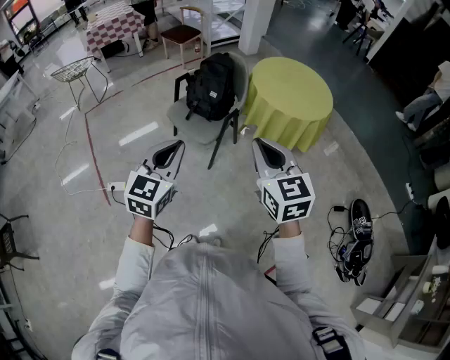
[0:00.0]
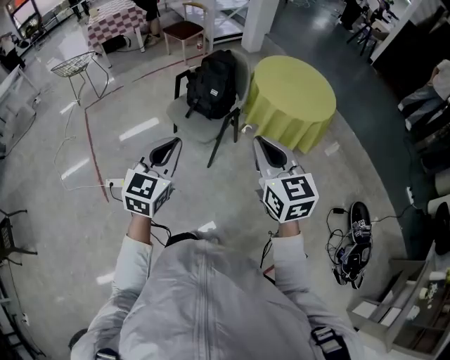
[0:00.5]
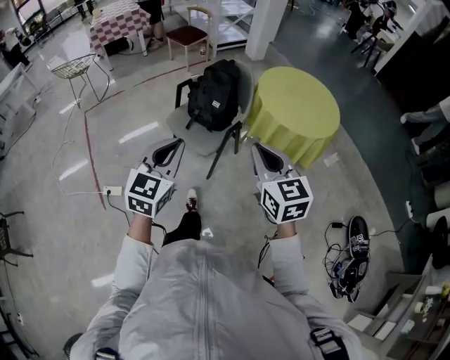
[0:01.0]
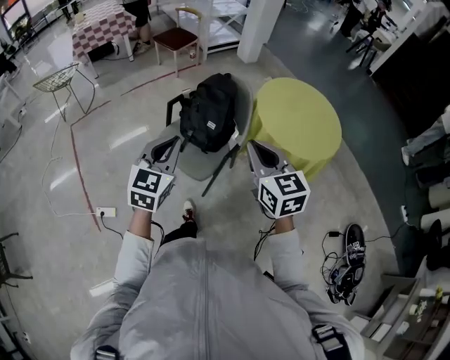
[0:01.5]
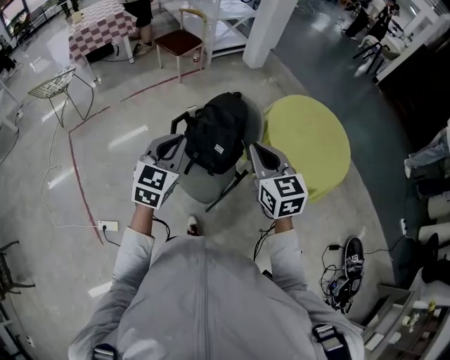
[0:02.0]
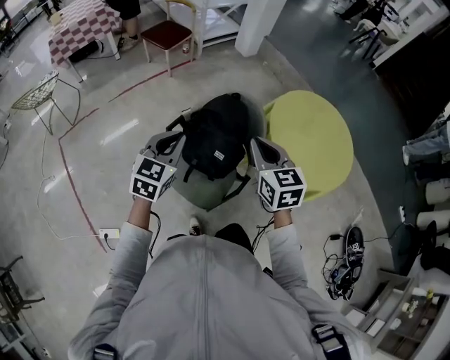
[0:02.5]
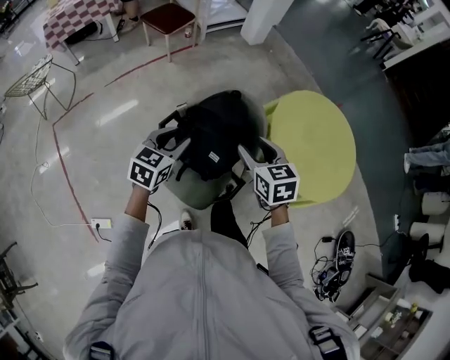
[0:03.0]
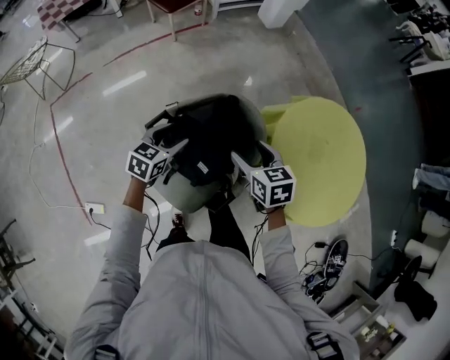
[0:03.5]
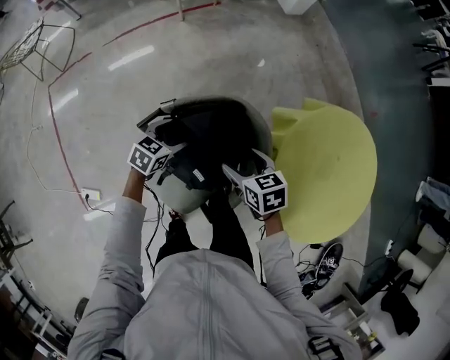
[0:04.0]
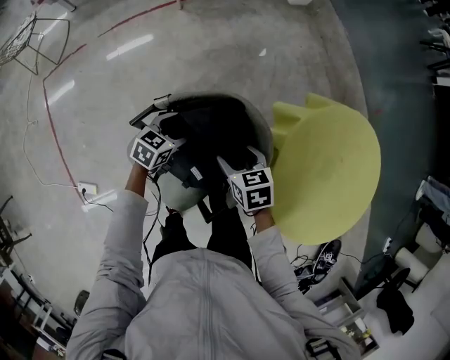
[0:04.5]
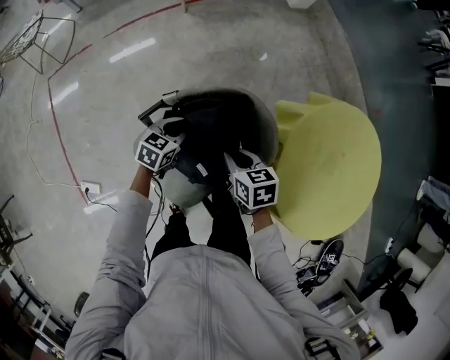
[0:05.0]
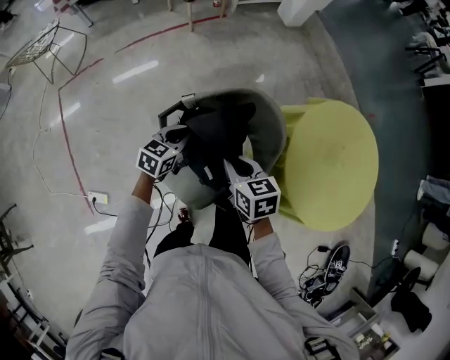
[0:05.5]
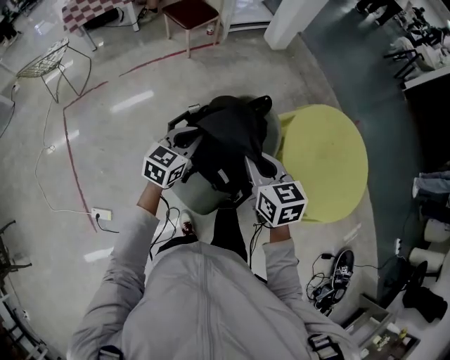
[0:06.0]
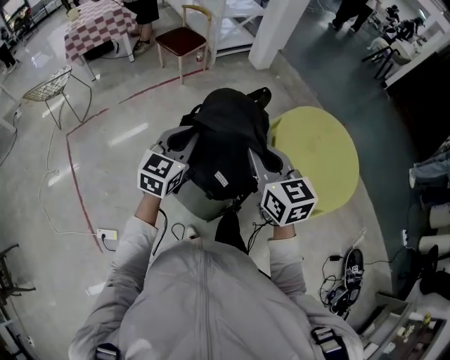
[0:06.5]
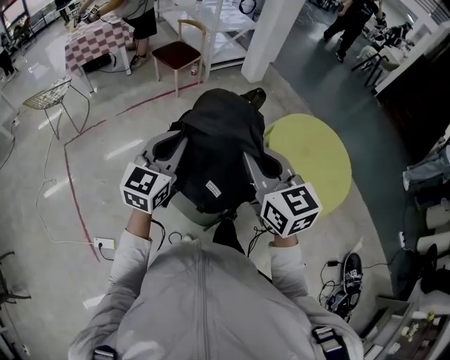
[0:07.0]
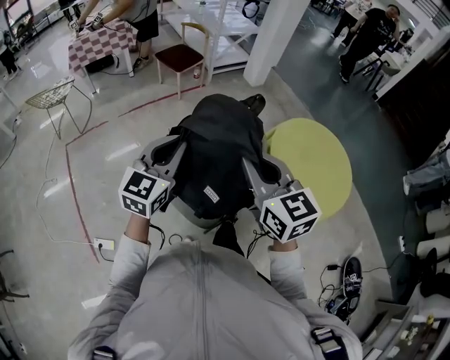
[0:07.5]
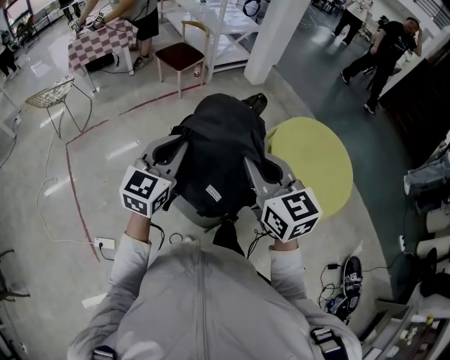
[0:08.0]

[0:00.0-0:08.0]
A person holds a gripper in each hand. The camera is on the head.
0.0 to 2.0 s: Both grippers are carried forward, roughly 40 cm.
2.0 to 4.0 s: Both grippers travel together downward and forward, some 40 cm. The left gripper swivels approximately 40 degrees, and opens up. Meanwhile the right gripper points its fingers approximately 30 degrees further downward, and opens.
4.0 to 6.0 s: The two grippers go roughly 20 cm upward and backward. The right gripper rotates roughly 30 degrees, and closes its fingers. The left gripper turns by roughly 30 degrees, and closes its fingers.
6.0 to 8.0 s: The two grippers go some 20 cm upward and backward. The right gripper changes its angle by about 20 degrees. Meanwhile the left gripper swivels roughly 20 degrees.

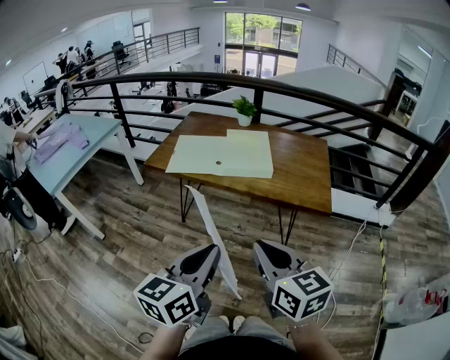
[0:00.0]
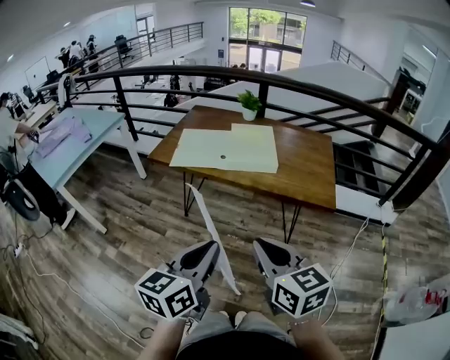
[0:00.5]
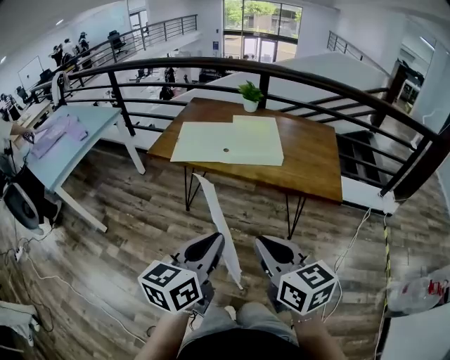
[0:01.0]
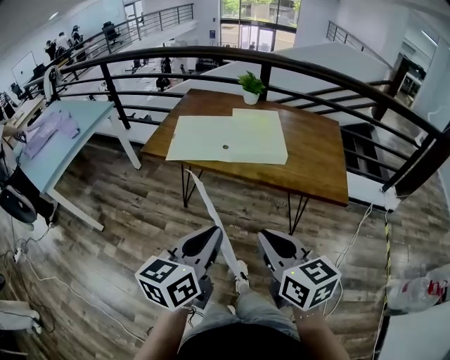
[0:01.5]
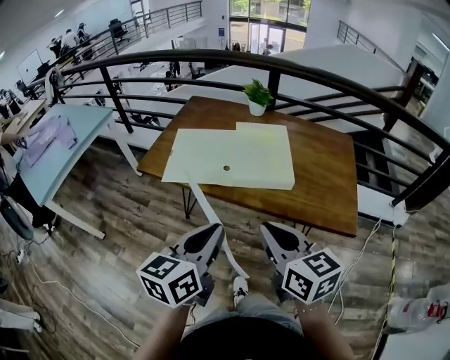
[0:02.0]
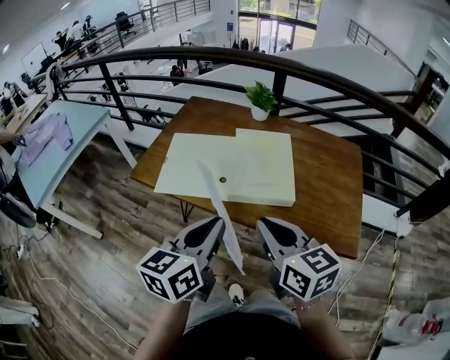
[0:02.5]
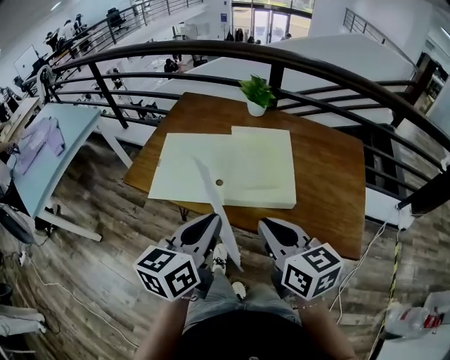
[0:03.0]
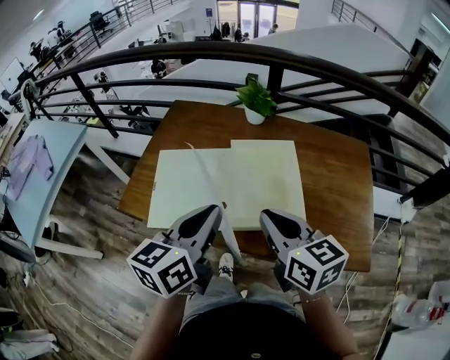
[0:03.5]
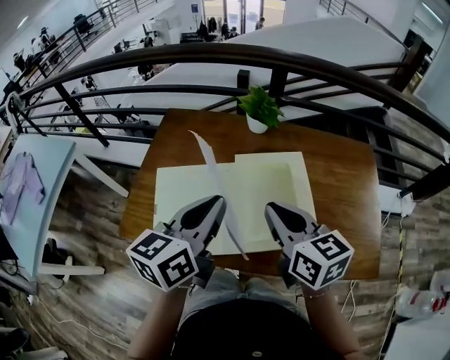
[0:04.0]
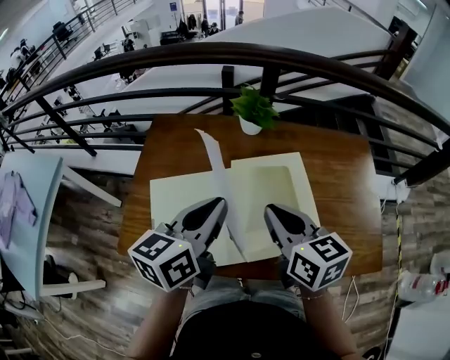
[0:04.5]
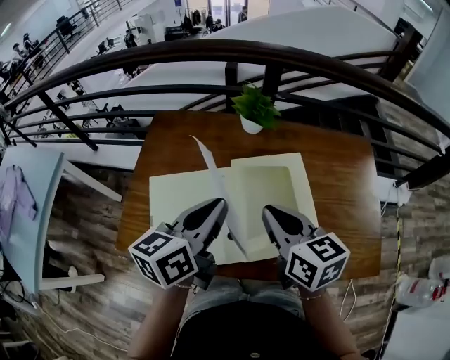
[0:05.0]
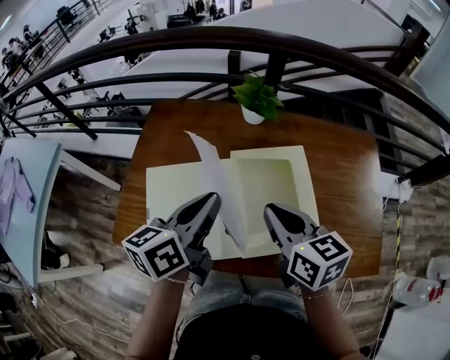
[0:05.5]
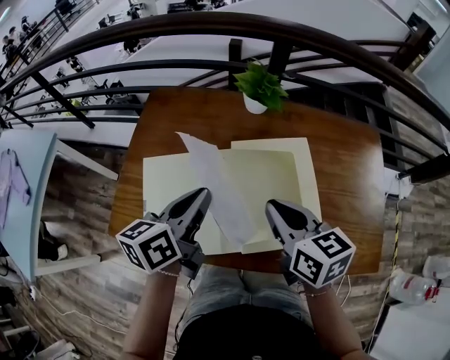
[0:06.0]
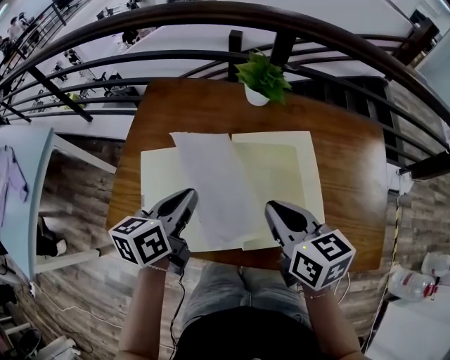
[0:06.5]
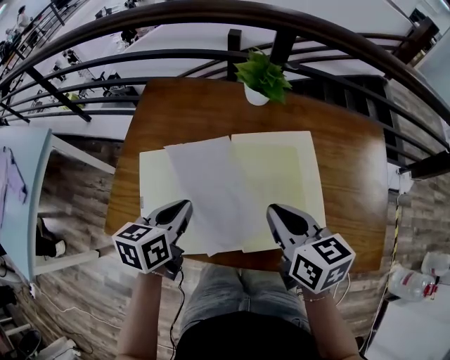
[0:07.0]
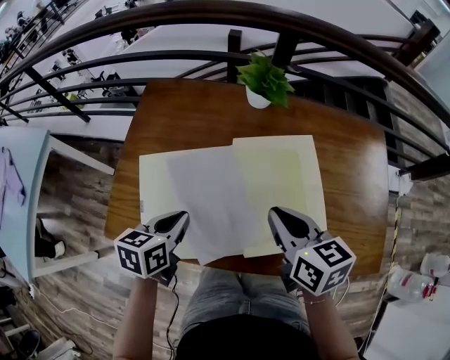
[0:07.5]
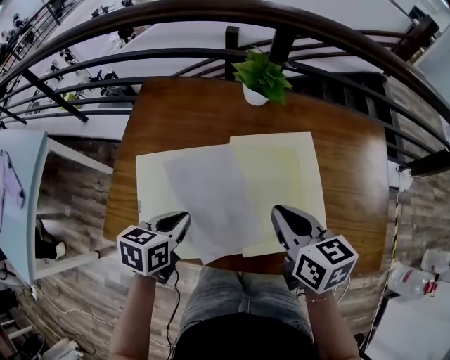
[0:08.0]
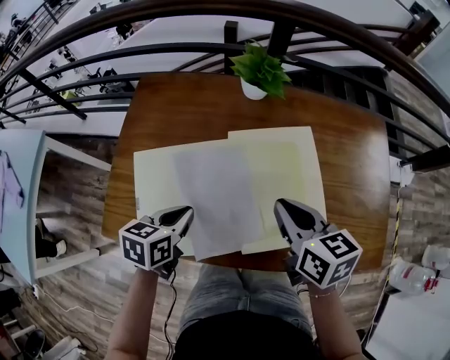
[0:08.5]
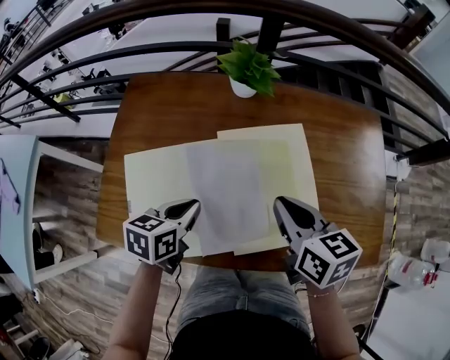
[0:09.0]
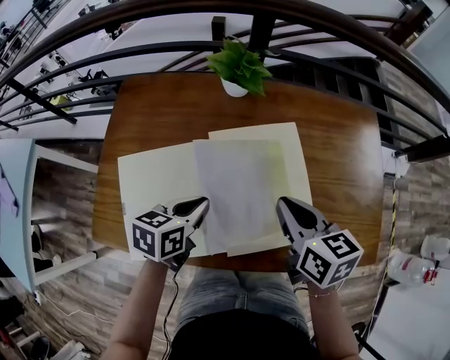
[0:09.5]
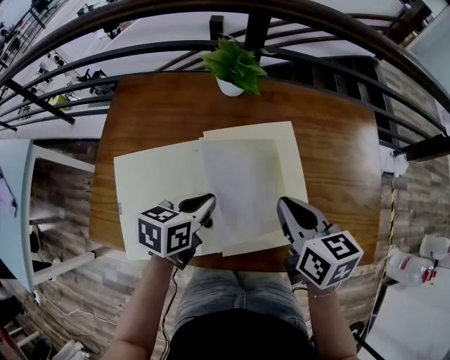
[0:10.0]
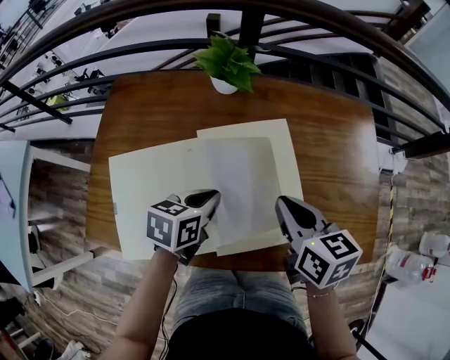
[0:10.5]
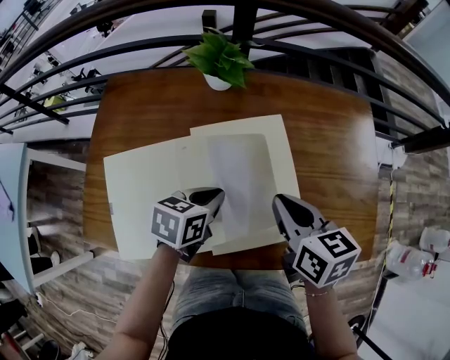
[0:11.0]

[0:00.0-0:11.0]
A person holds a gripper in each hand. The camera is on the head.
0.0 to 2.0 s: The grippers both shift forward by approximately 20 cm.
2.0 to 3.5 s: Both grippers move forward, some 25 cm.
3.5 to 5.5 s: The grippers both shift forward by some 15 cm.
5.5 to 7.5 s: The left gripper is displaced downward and to the left by some 15 cm, and swivels roughly 30 degrees.
7.5 to 9.0 s: The left gripper moves to the right, roughly 5 cm.
9.0 to 11.0 s: The left gripper travels to the right by about 10 cm. Meanwhile the right gripper moves to the right, approximately 5 cm.

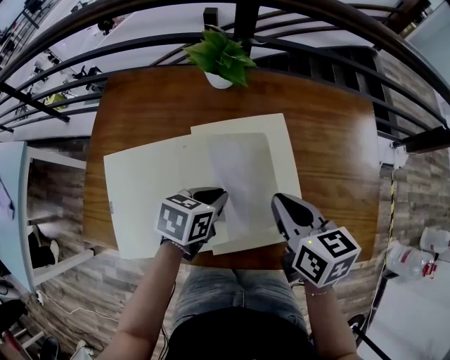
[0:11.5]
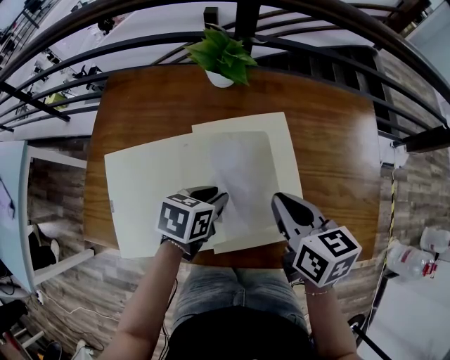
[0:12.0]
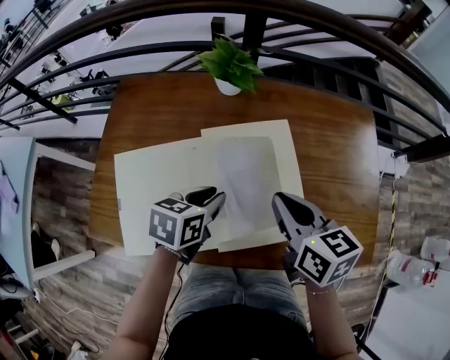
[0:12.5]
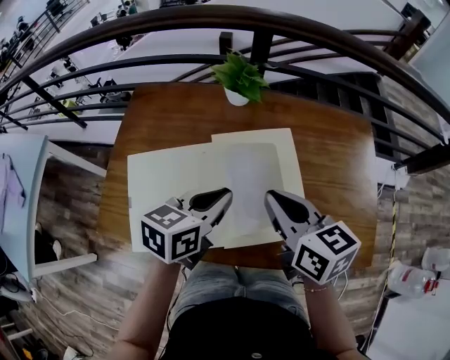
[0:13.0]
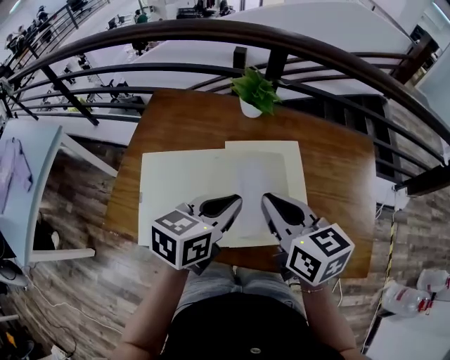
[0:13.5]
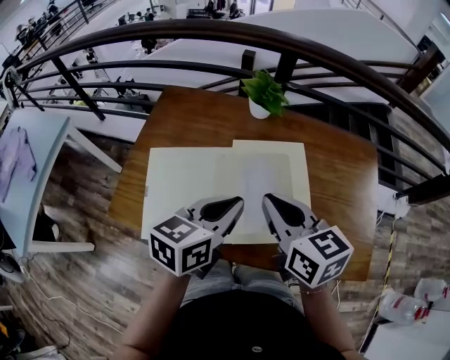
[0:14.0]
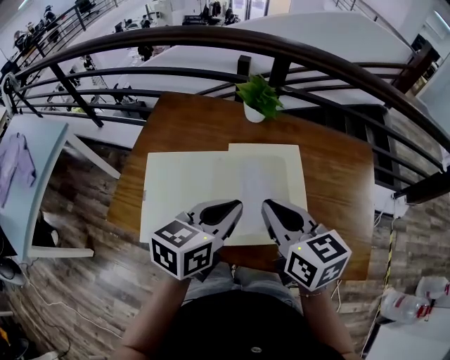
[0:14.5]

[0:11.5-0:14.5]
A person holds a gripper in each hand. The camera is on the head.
11.5 to 13.0 s: The right gripper travels upward by about 5 cm. Meanwhile the left gripper heads upward, covering roughly 10 cm, and swivels about 20 degrees.
13.0 to 14.5 s: The left gripper travels upward by roughly 5 cm; the right gripper changes place by some 5 cm.

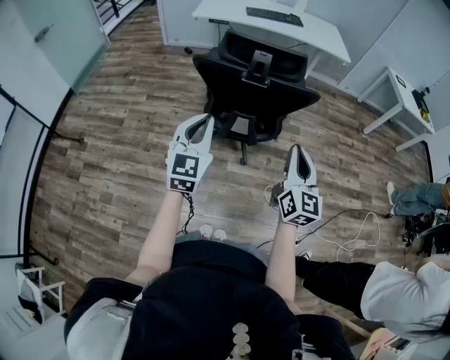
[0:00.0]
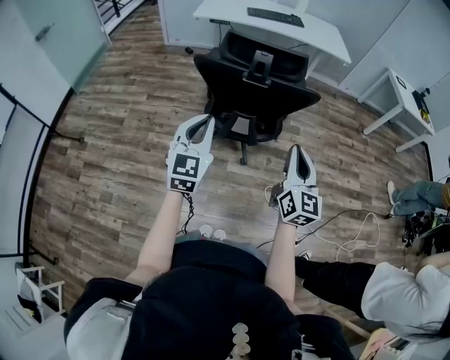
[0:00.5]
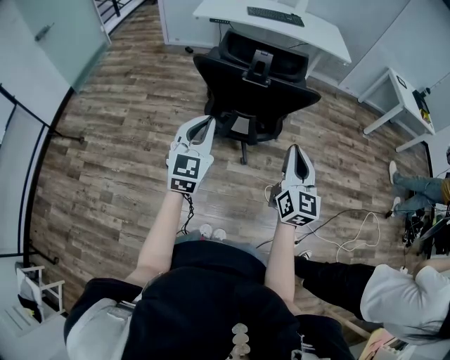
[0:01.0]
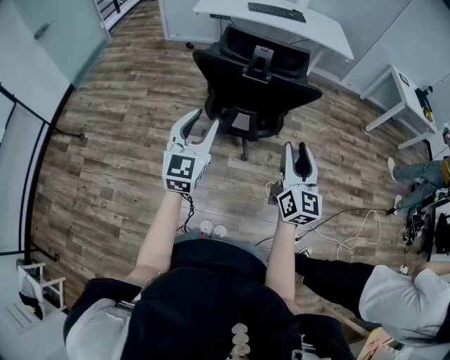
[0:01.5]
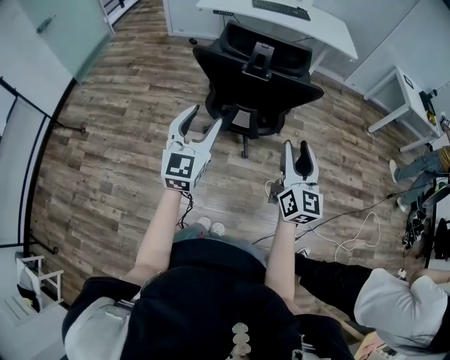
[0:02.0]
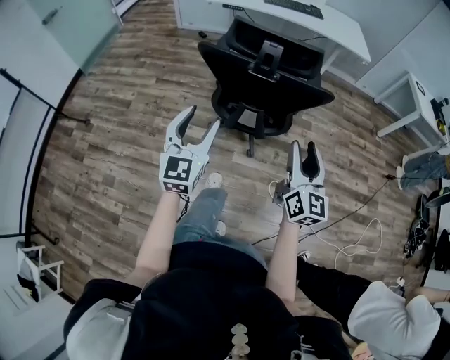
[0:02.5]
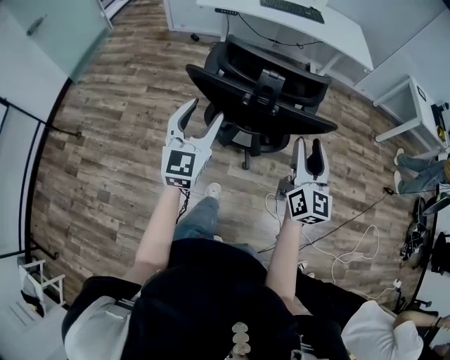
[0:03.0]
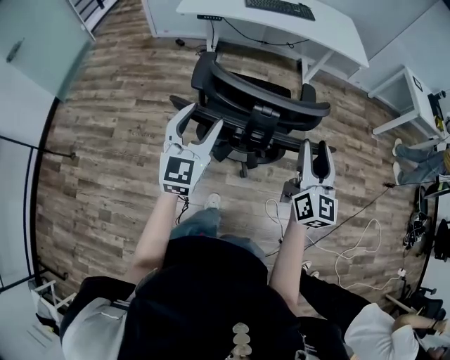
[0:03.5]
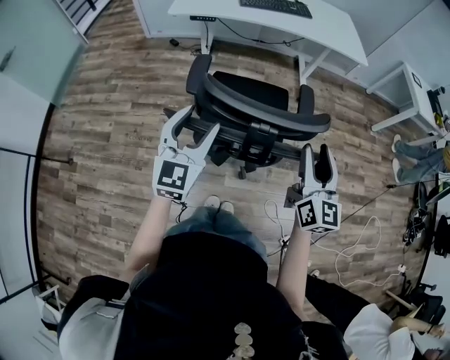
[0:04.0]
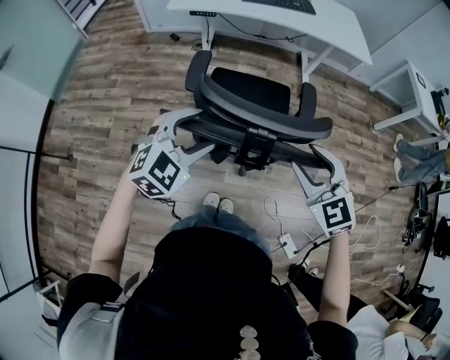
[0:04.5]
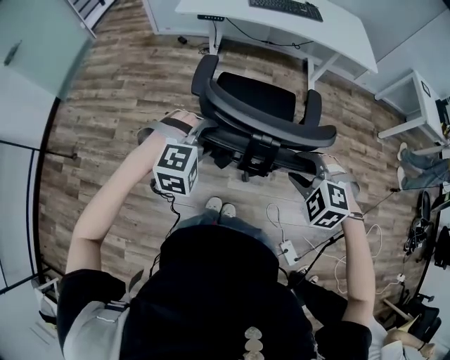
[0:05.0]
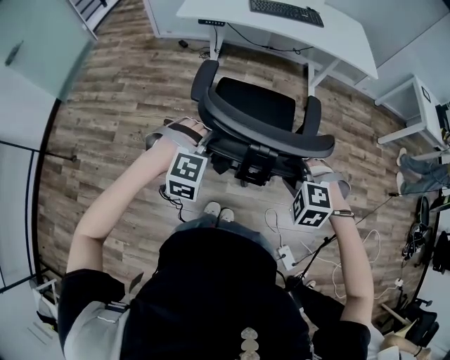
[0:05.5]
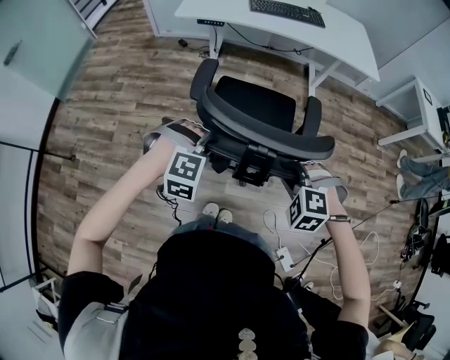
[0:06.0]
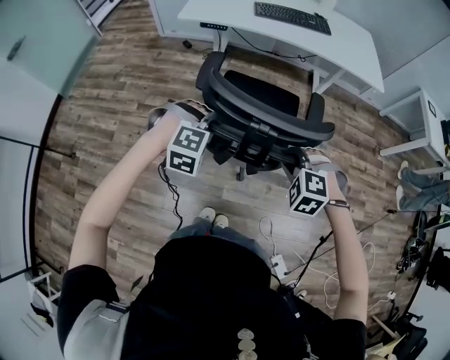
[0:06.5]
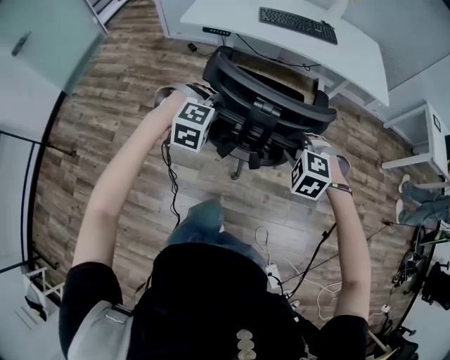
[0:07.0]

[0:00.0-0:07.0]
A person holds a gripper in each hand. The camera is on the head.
0.0 to 2.0 s: The right gripper opens, while the left gripper opens up.
2.0 to 3.5 s: Both grippers move forward, about 25 cm.
3.5 to 5.0 s: The two grippers go about 10 cm downward. The left gripper points its fingers some 50 degrees further downward. Meanwhile the right gripper tips its fingers downward by about 60 degrees.
5.0 to 7.0 s: The two grippers go some 20 cm forward. The left gripper closes its fingers, while the right gripper closes.
